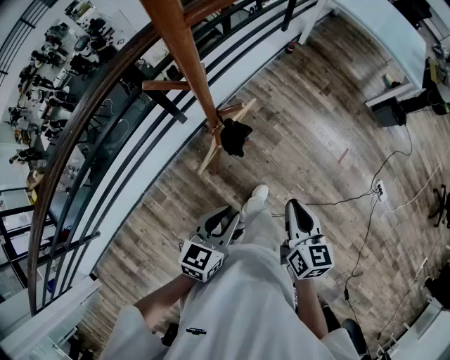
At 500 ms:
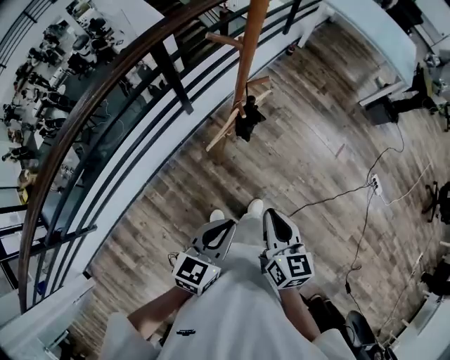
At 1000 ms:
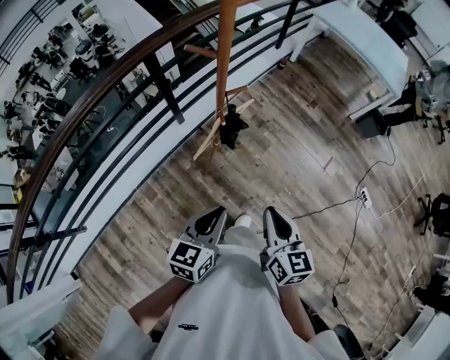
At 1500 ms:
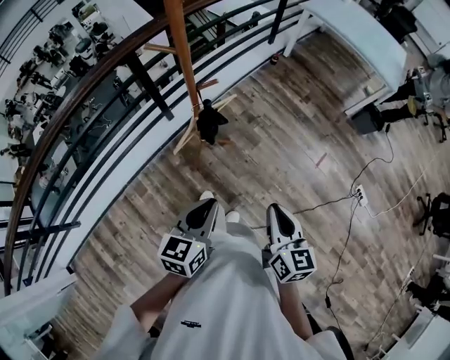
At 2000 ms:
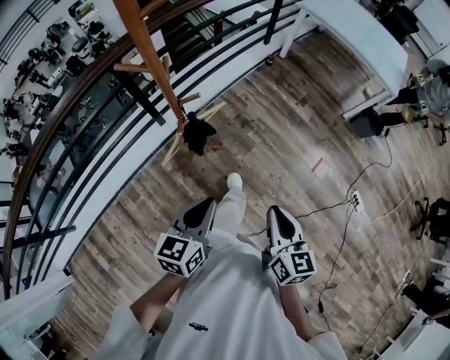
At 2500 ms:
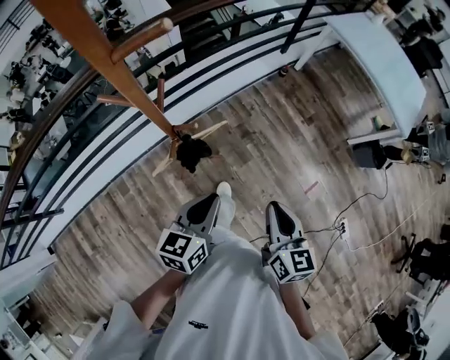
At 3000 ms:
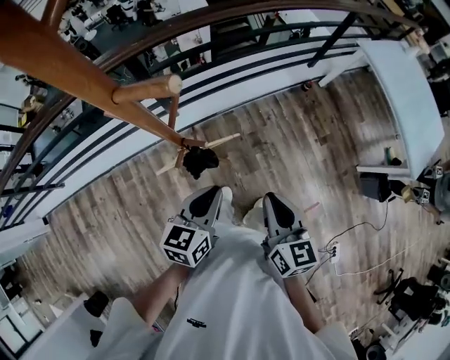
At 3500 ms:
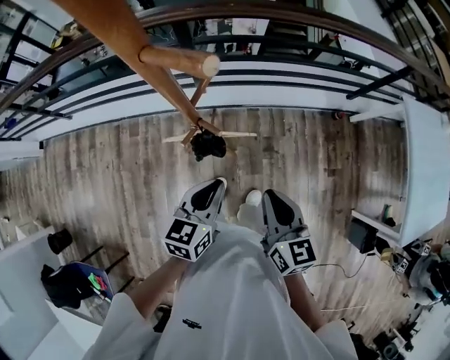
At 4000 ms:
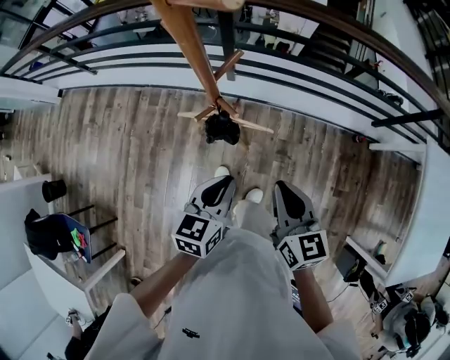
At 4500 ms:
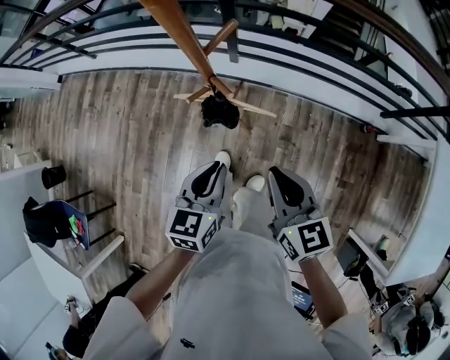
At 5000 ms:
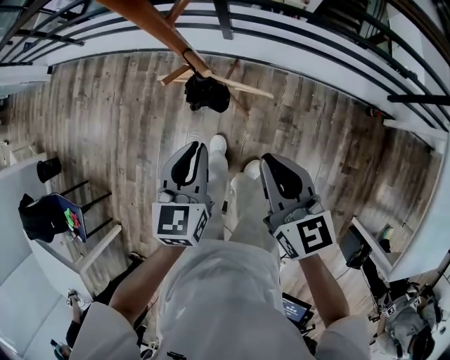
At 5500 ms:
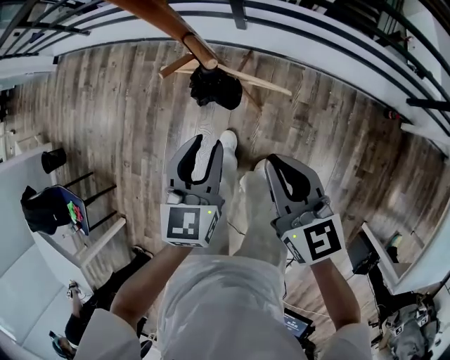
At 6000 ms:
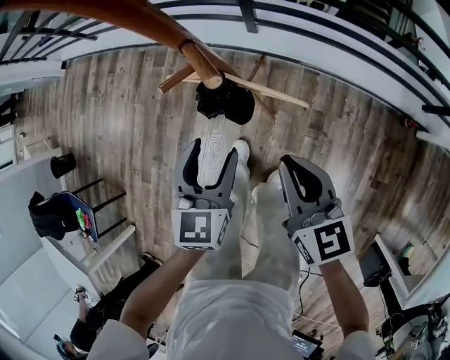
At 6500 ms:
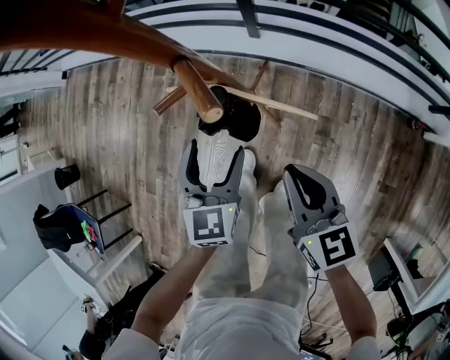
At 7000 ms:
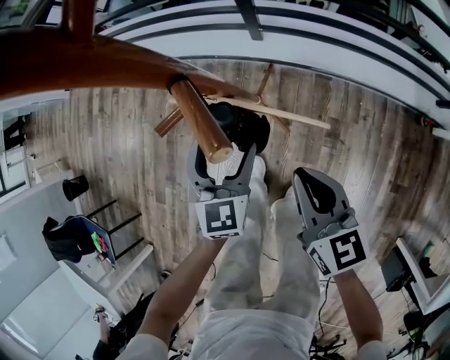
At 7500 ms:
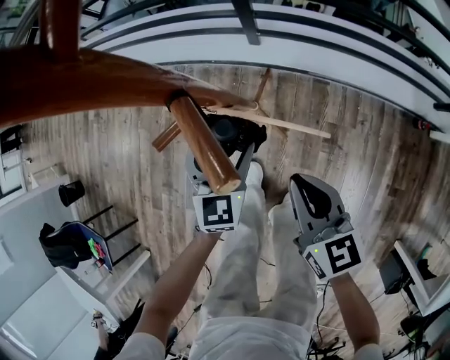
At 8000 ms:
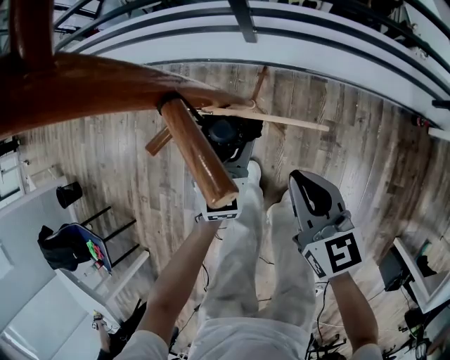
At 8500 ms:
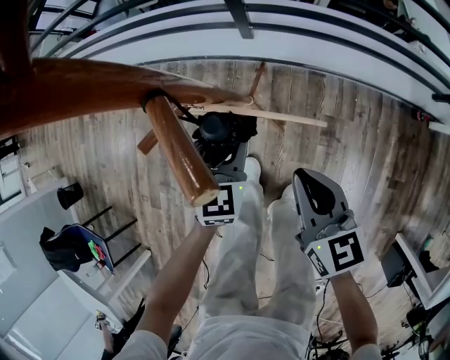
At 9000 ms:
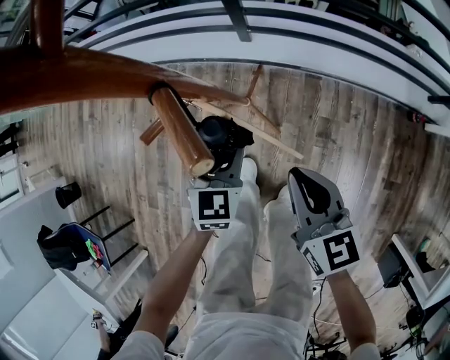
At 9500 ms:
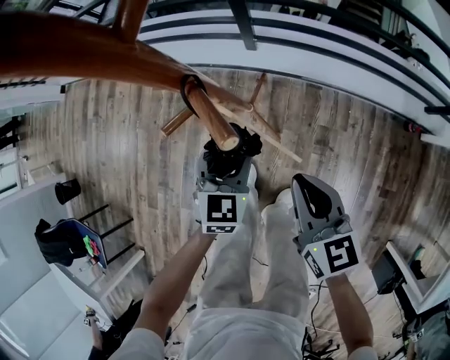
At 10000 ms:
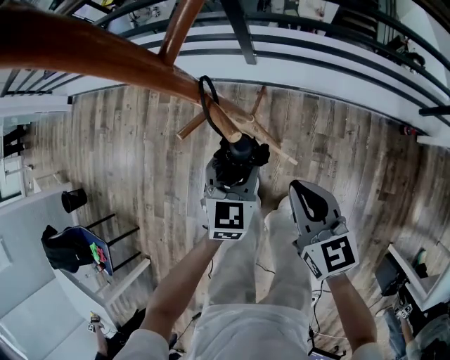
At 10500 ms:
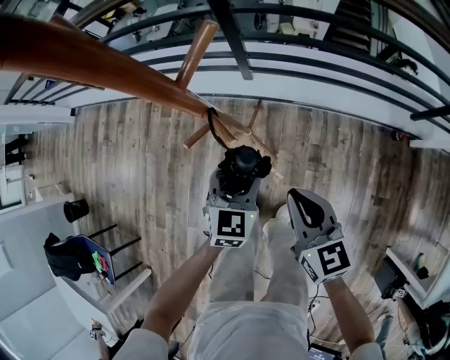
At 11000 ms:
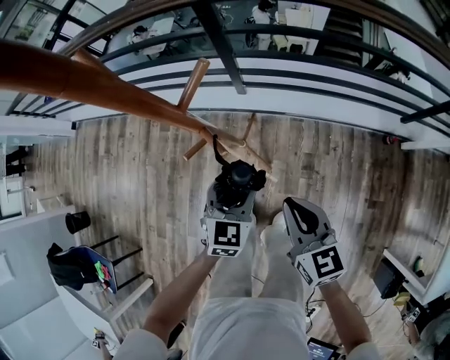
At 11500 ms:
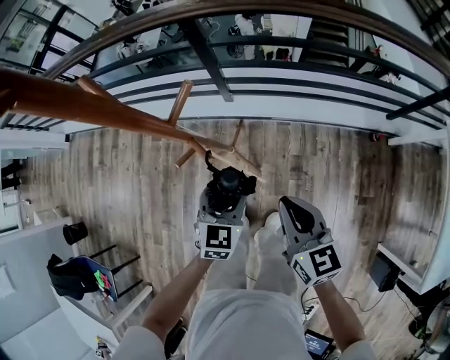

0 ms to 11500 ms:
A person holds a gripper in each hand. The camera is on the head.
0 ms to 2000 ms: The right gripper shifts some 15 cm to the right and backward; the left gripper moves to the right, approximately 10 cm.
2000 ms to 4000 ms: The right gripper changes place by approximately 35 cm, and rotates roughly 60 degrees, while the left gripper ends up roughly 25 cm from where it was, and changes its angle by roughly 50 degrees.
4000 ms to 6000 ms: Both grippers move downward, some 25 cm. The left gripper changes its angle by some 20 degrees, and opens up.
6000 ms to 7500 ms: The left gripper travels forward and downward by approximately 15 cm. The right gripper travels downward and forward by about 10 cm.
7500 ms to 9500 ms: The left gripper changes place by approximately 5 cm, and closes its fingers. Meanwhile the right gripper moves approximately 5 cm.
9500 ms to 11500 ms: The right gripper heads upward, covering about 20 cm, while the left gripper heads upward and to the right, covering roughly 20 cm.

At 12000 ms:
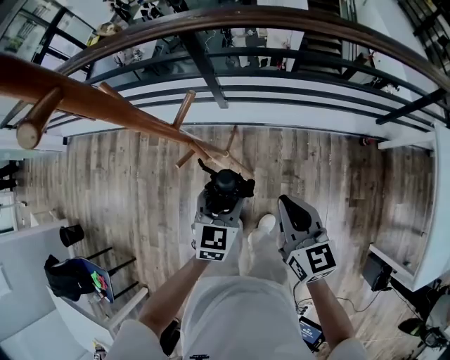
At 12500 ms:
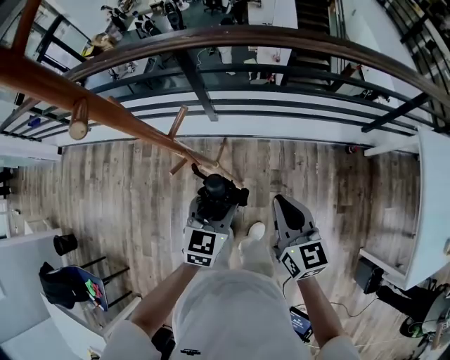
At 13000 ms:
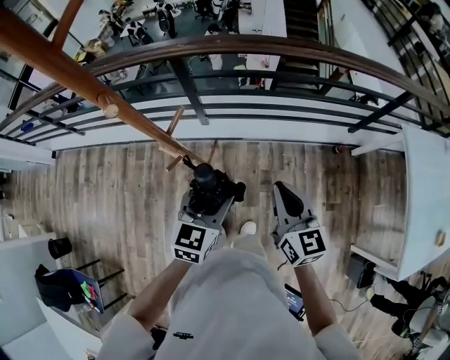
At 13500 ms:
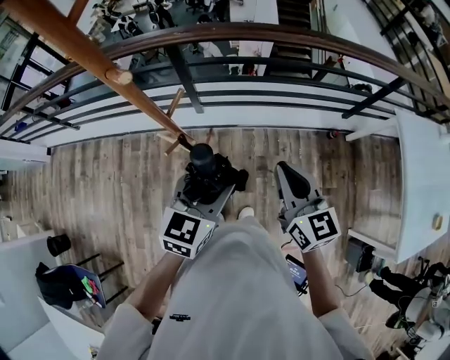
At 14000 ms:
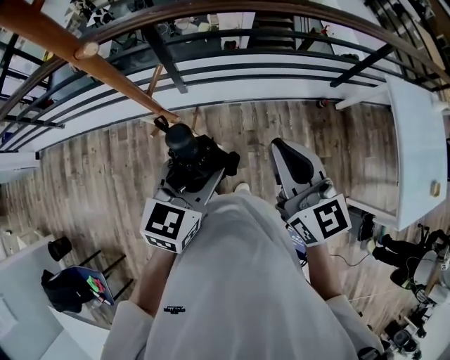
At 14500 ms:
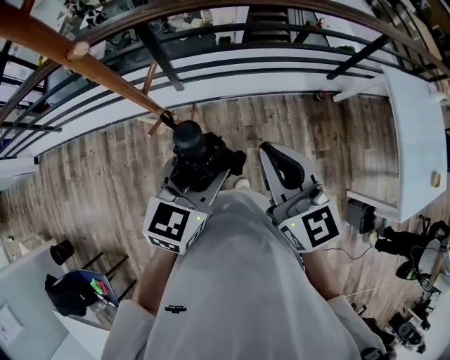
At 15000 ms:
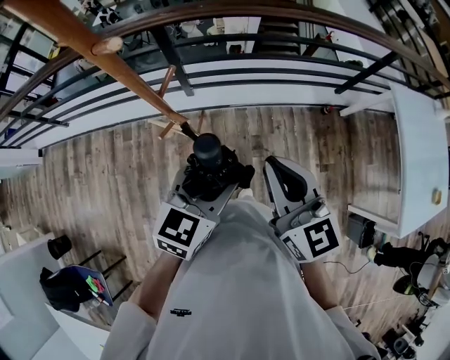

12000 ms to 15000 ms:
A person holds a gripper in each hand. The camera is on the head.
12000 ms to 13500 ms: The two grippers go approximately 15 cm upward.
13500 ms to 15000 ms: The right gripper is displaced backward by some 5 cm.

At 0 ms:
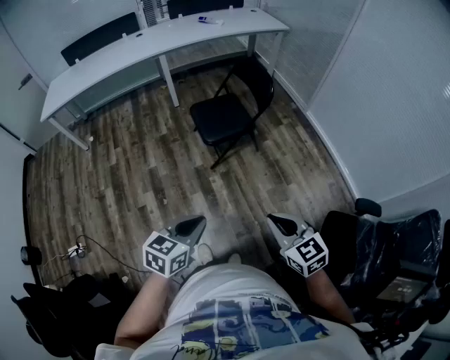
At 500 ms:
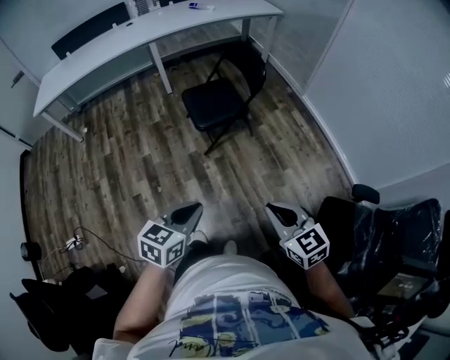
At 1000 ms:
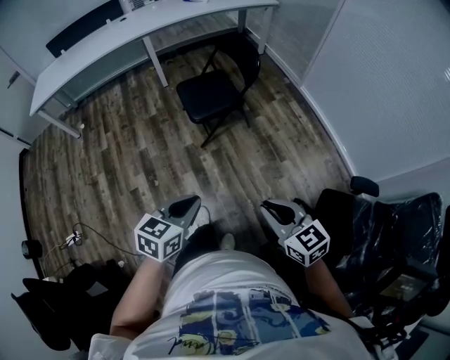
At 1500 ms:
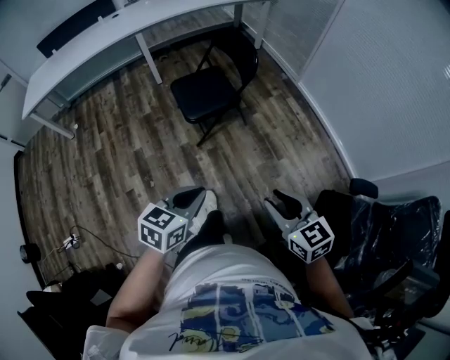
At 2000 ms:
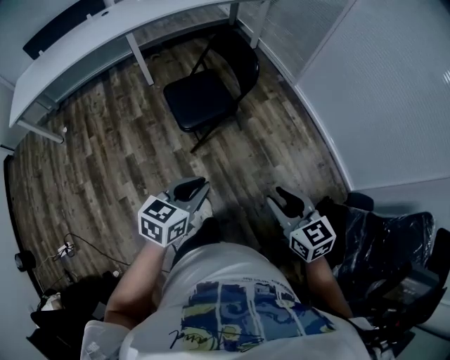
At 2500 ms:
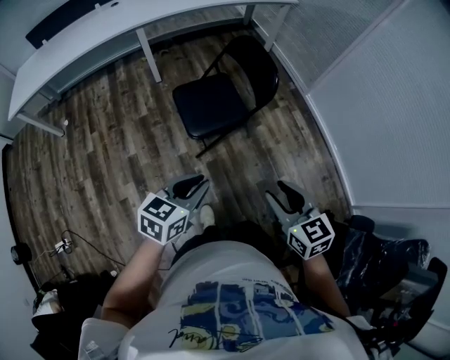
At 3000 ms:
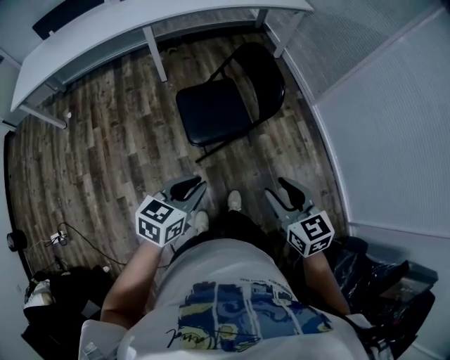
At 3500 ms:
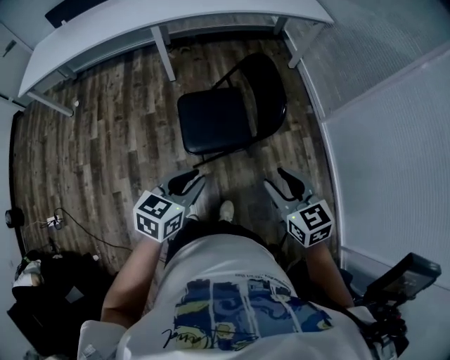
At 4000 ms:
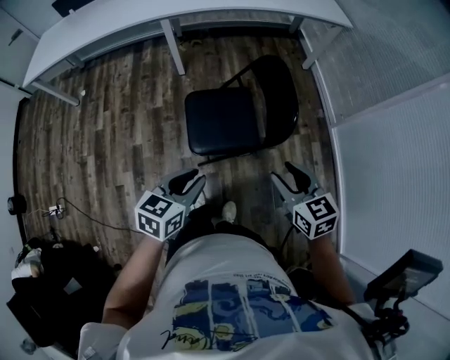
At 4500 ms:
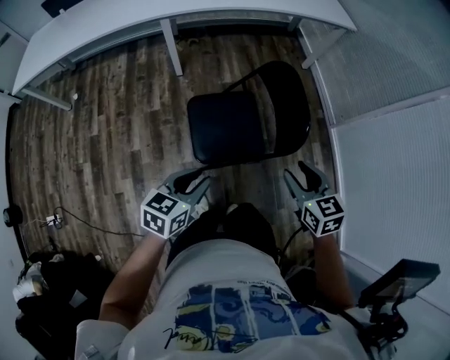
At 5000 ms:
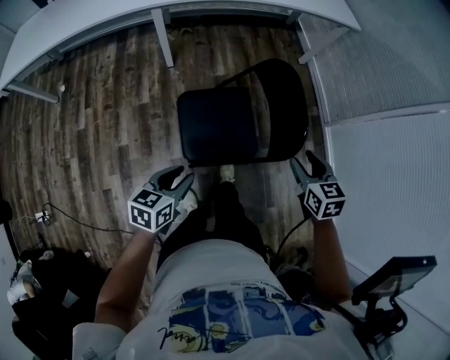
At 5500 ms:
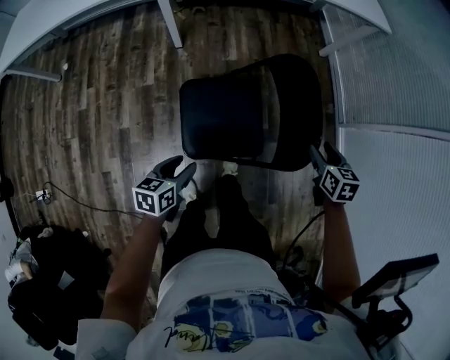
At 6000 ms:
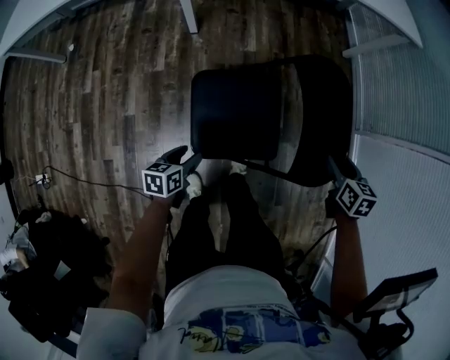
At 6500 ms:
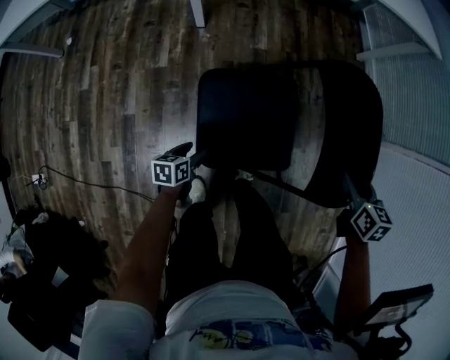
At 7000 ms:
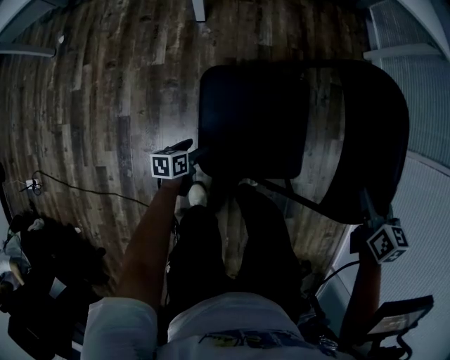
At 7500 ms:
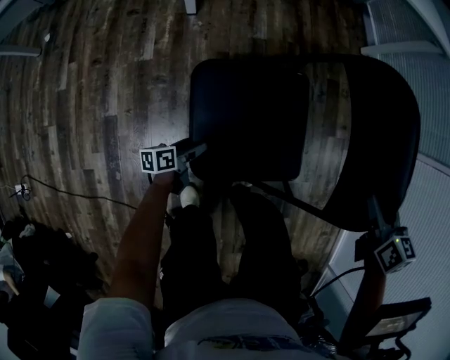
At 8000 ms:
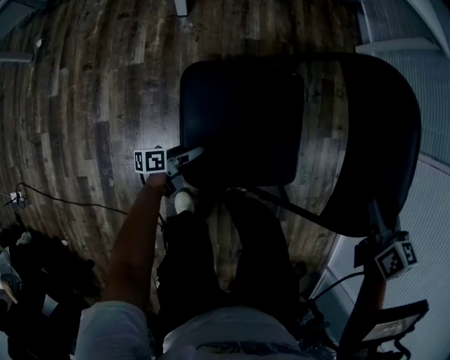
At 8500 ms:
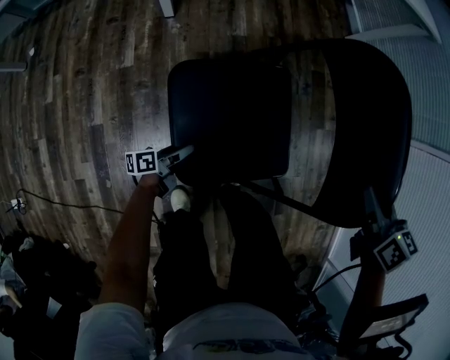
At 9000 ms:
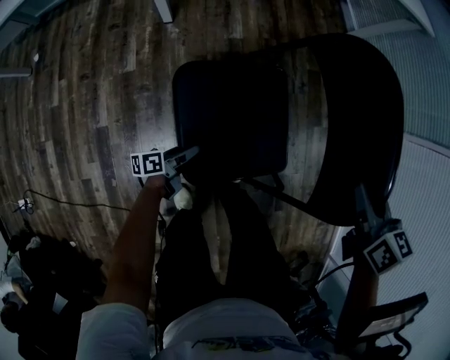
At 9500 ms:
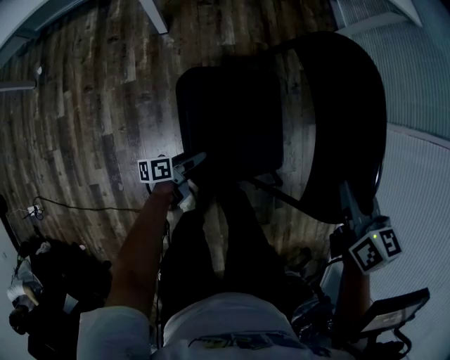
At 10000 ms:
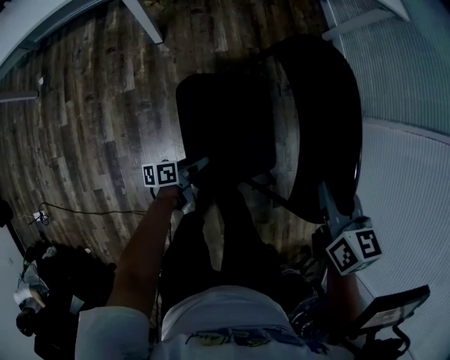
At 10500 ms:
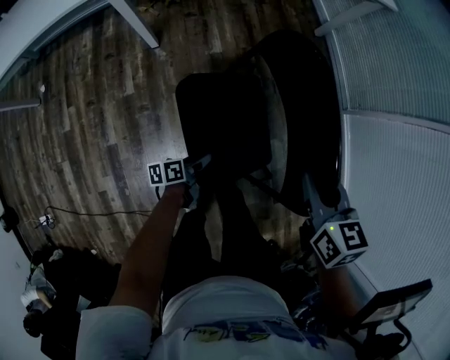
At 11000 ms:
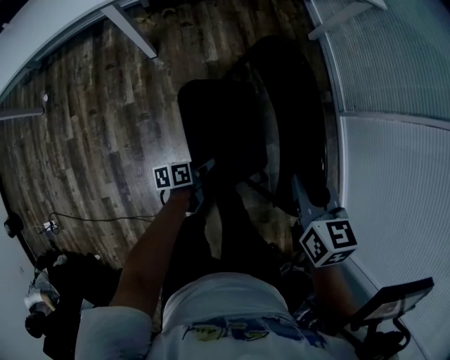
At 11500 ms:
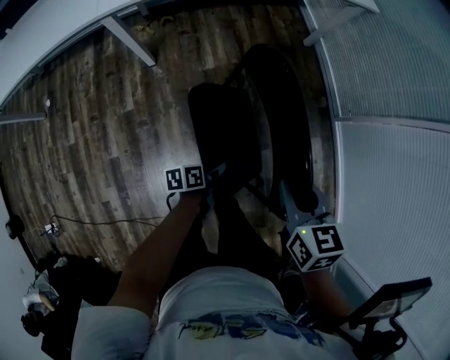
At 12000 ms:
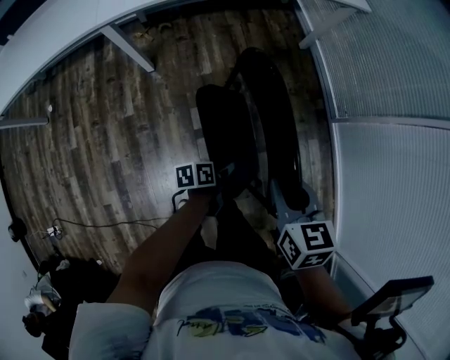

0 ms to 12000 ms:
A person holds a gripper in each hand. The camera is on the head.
0 ms to 2000 ms: The right gripper moves forward and to the right, roughly 15 cm, and opens up; the left gripper is displaced forward by approximately 20 cm.
2000 ms to 4000 ms: Both grippers move forward, some 35 cm. The left gripper swivels approximately 20 degrees.
4000 ms to 6000 ms: The right gripper moves forward and downward, some 35 cm, and rotates approximately 30 degrees, while the left gripper heads downward and forward, covering some 35 cm, swivels approximately 30 degrees, and opens its fingers.
6000 ms to 8000 ms: The left gripper shifts roughly 25 cm downward, and changes its angle by approximately 40 degrees.
8000 ms to 10000 ms: The right gripper goes some 10 cm upward, and closes its fingers. The left gripper heads upward and to the right, covering approximately 20 cm.
10000 ms to 12000 ms: The left gripper is displaced to the right, upward and forward by roughly 20 cm.
